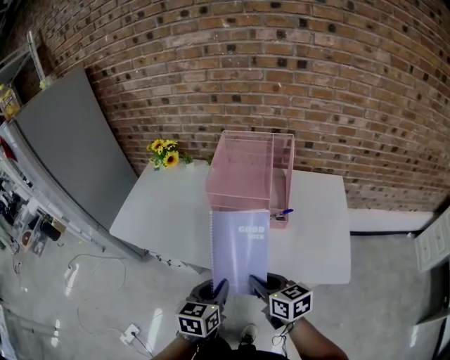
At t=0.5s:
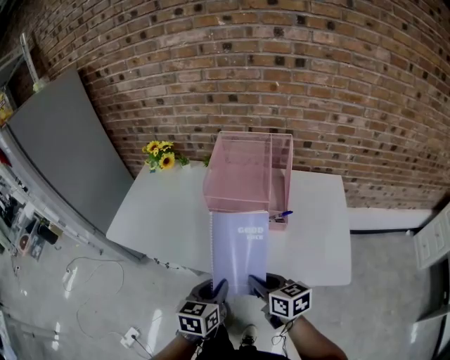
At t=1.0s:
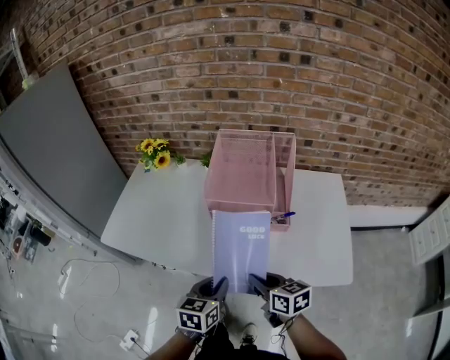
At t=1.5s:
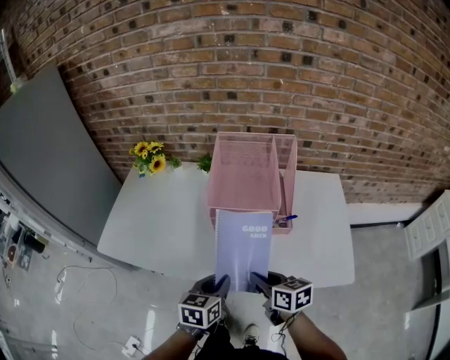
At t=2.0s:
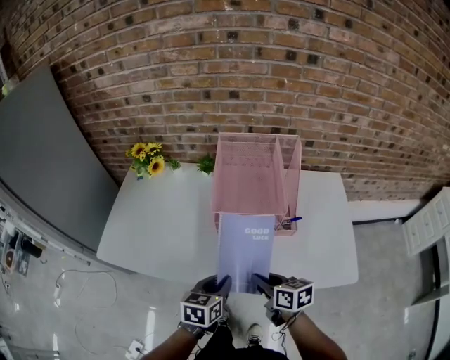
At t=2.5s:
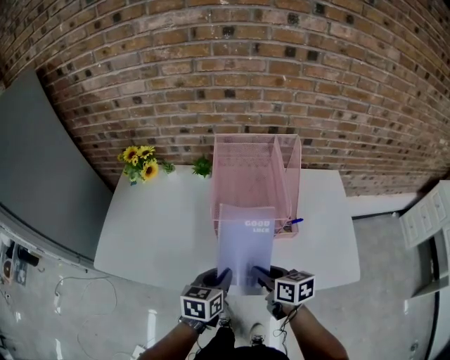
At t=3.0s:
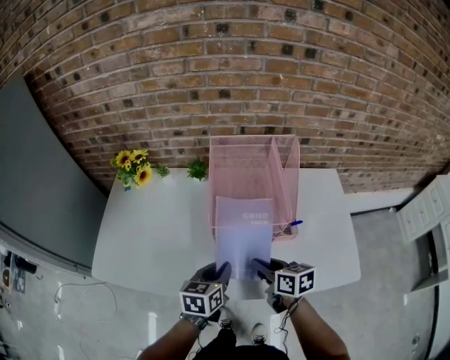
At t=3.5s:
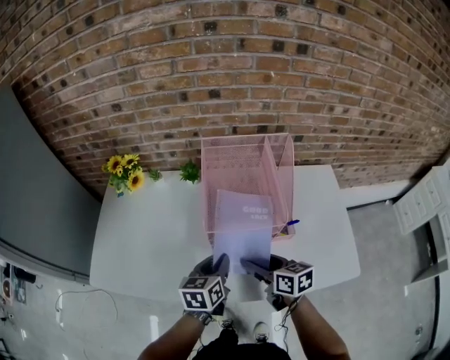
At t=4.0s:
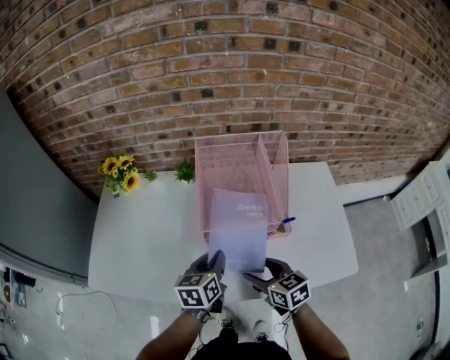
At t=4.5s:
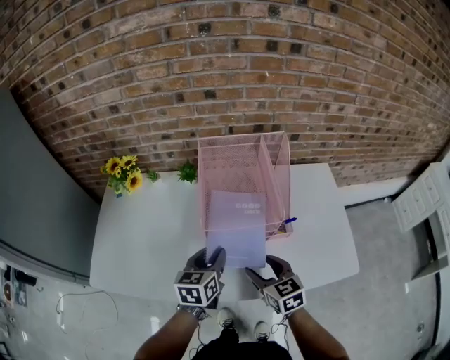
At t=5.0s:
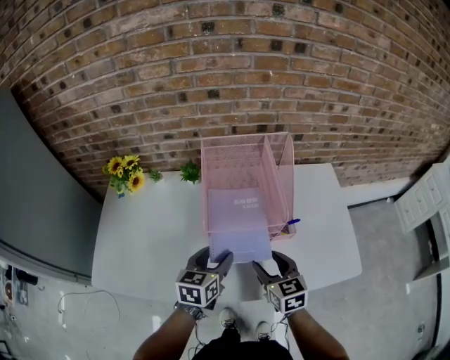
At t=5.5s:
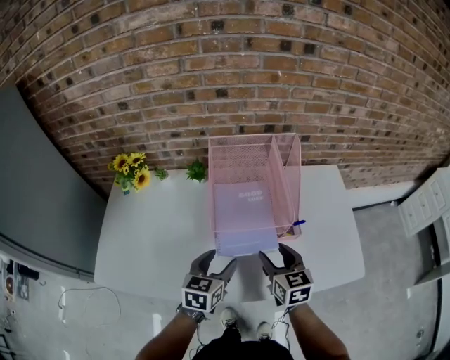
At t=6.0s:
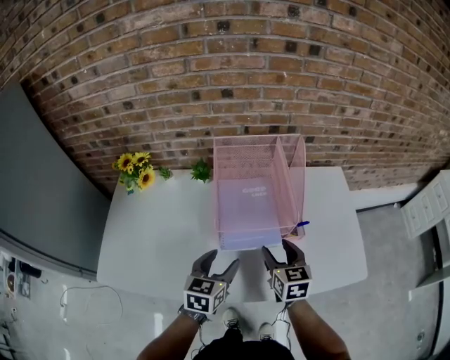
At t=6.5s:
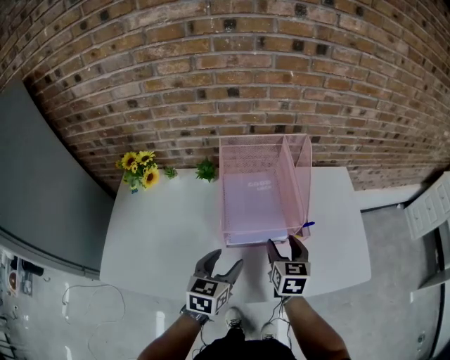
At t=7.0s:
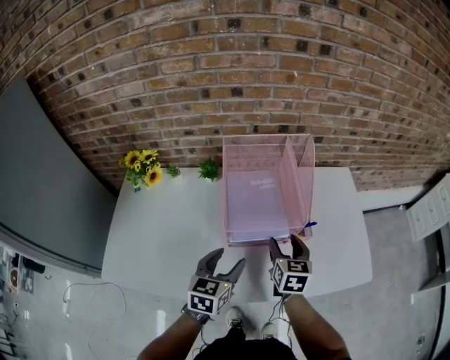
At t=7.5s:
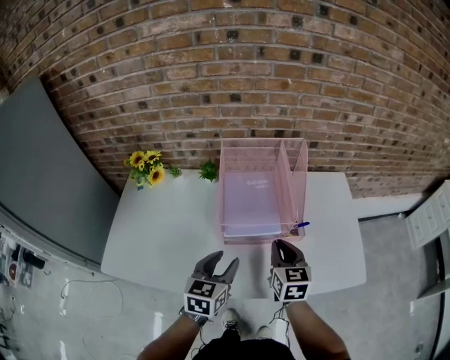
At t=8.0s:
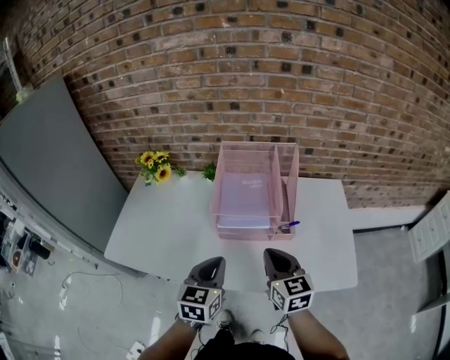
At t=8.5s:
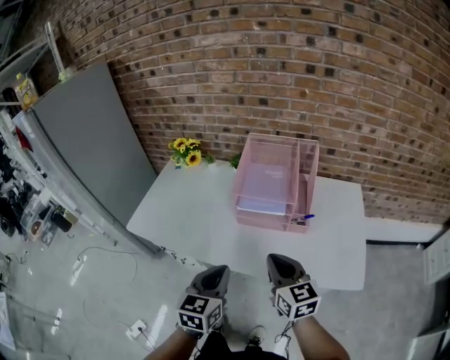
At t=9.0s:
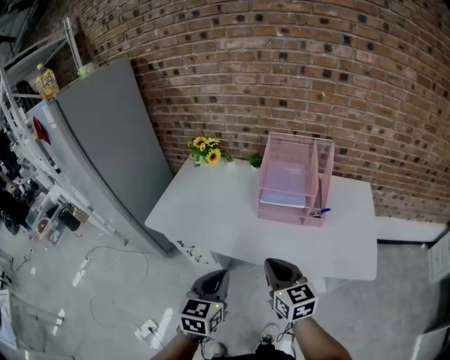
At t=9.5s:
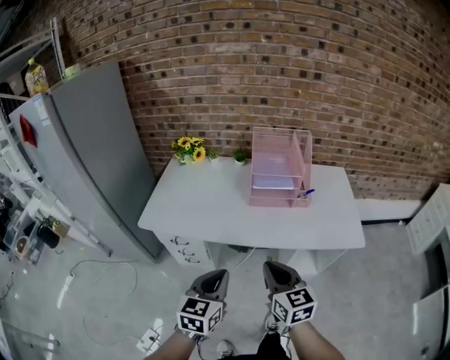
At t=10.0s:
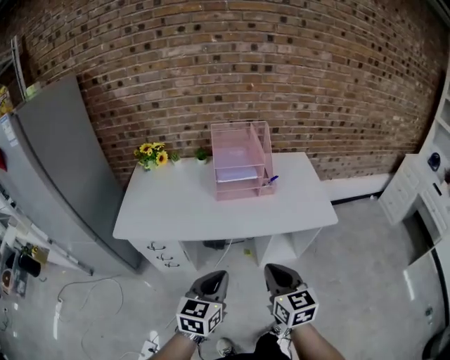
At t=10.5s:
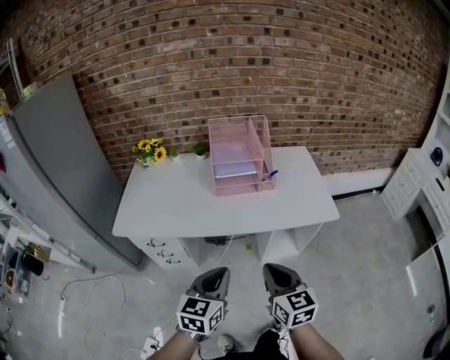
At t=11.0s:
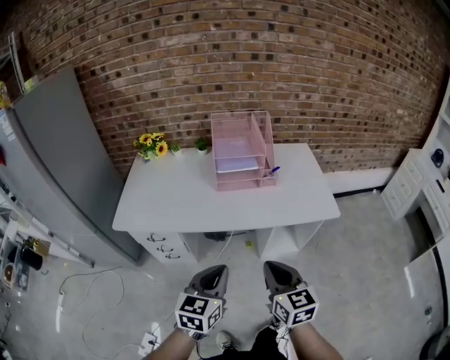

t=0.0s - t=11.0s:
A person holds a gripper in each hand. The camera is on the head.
t=0.0s - t=2.0s: Both grippers travel together forward and downward, some 10 cm.
t=2.0s - t=3.5s: The grippers both shift forward by approximately 10 cm. The right gripper opens its fingers.
t=3.5s - t=5.5s: The right gripper changes its angle by roughly 30 degrees. Meanwhile the left gripper opens up.
t=5.5s - t=7.5s: The right gripper closes its fingers. The left gripper moves roughly 5 cm.
t=7.5s - t=9.0s: The left gripper changes place by roughly 25 cm, and closes. Meanwhile the right gripper ends up approximately 25 cm from where it was, and changes its angle by about 30 degrees.
t=9.0s - t=11.0s: The right gripper changes place by some 20 cm, and turns by roughly 20 degrees. Meanwhile the left gripper shifts by roughly 10 cm, and changes its angle by about 20 degrees.

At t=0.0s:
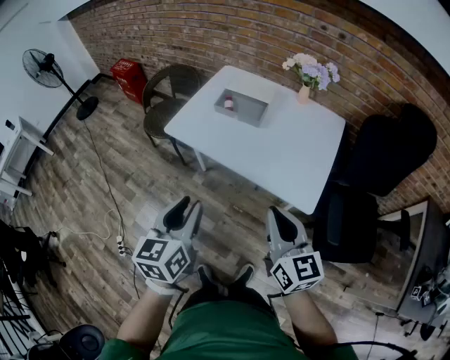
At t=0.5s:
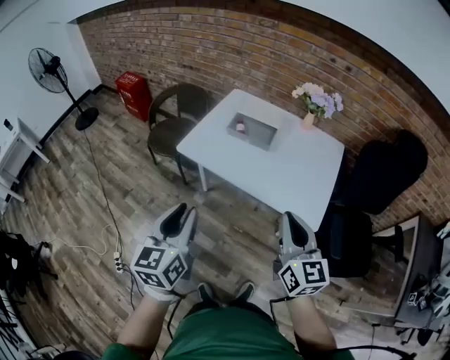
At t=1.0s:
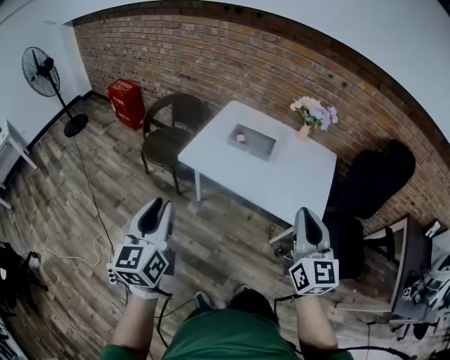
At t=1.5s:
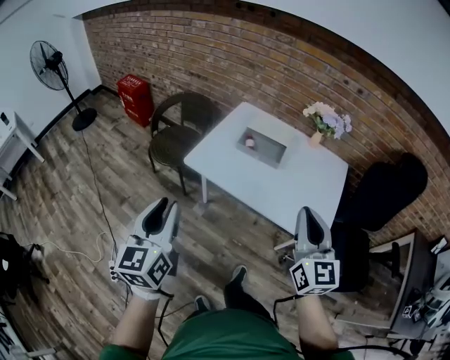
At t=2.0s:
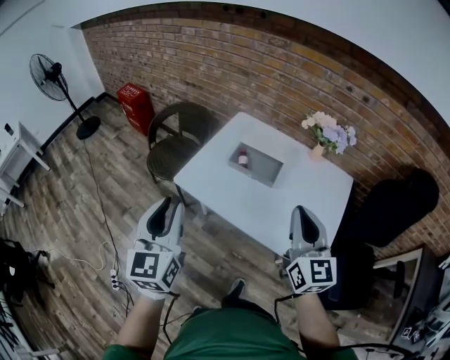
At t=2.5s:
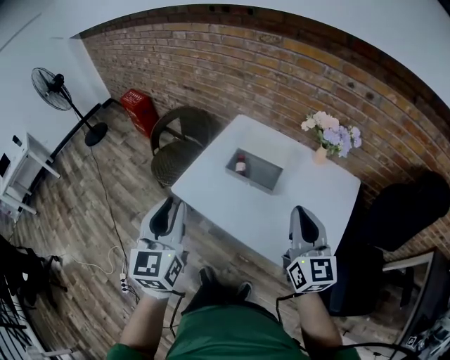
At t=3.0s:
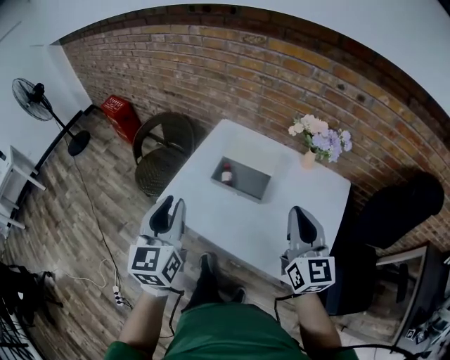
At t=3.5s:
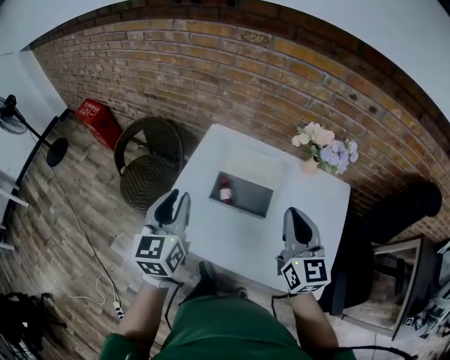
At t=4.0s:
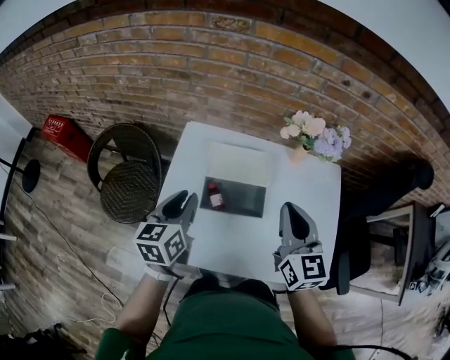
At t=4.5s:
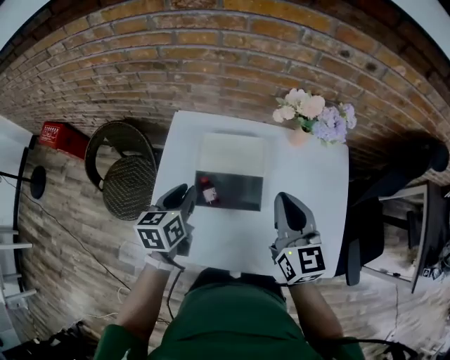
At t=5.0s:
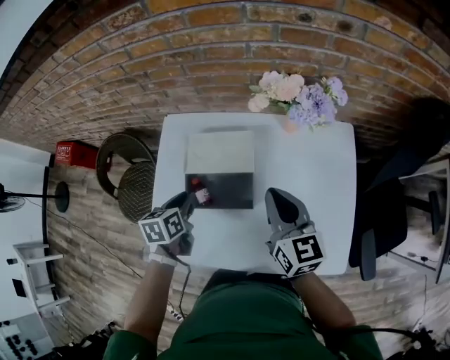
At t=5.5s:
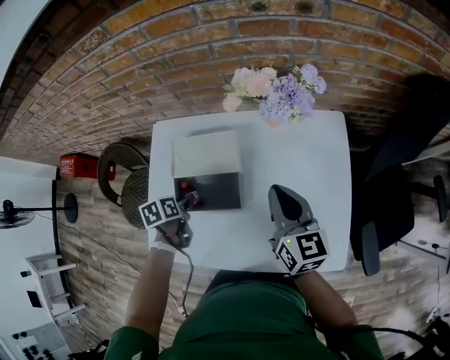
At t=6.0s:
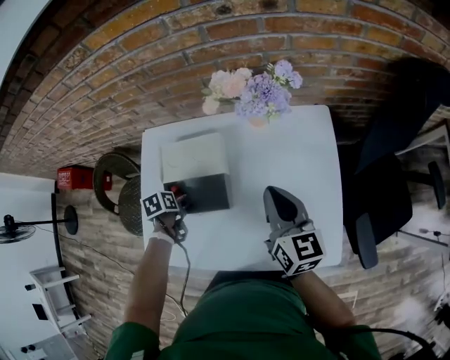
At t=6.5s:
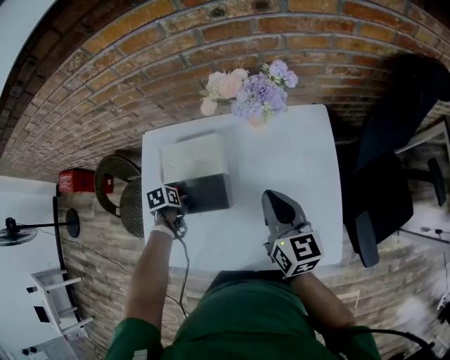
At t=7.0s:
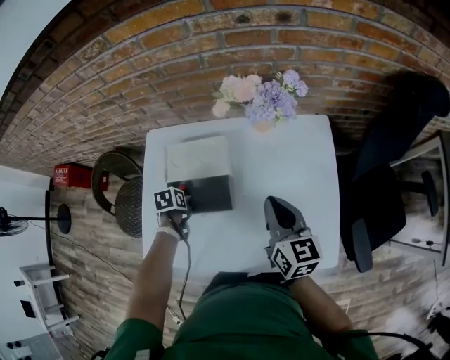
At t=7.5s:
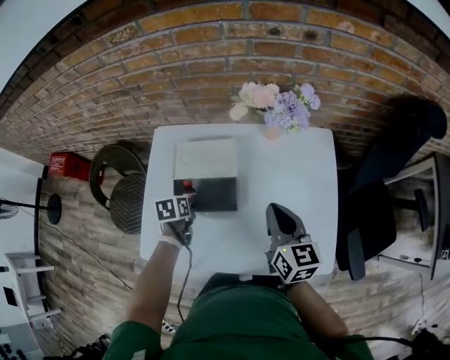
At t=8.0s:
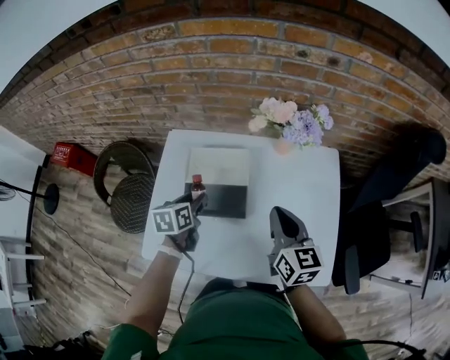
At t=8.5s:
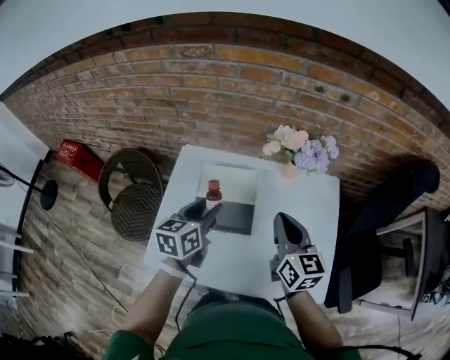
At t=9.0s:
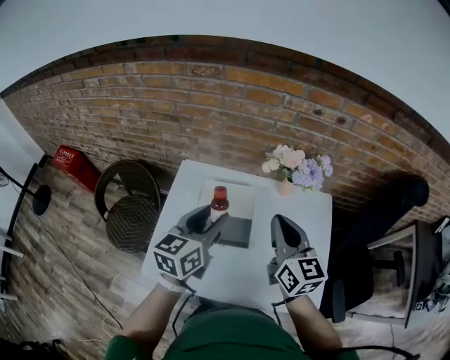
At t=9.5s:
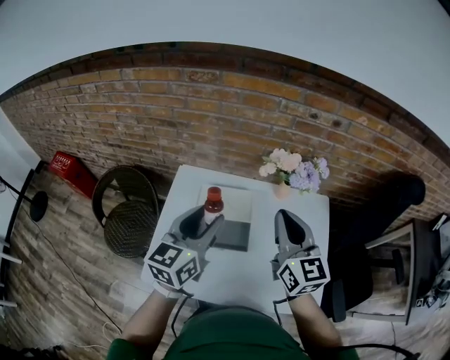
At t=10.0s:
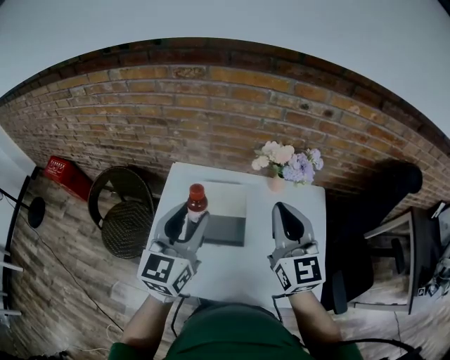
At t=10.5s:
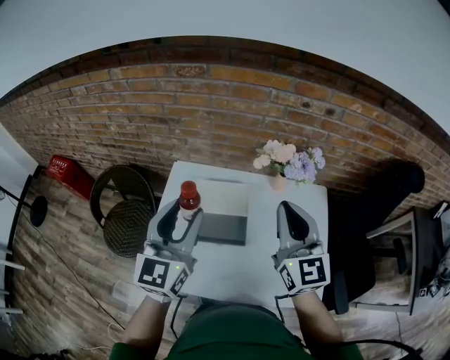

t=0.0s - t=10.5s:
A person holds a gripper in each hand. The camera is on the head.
t=0.0s - t=2.0s: The right gripper moves forward, roughly 20 cm, while the left gripper shifts about 20 cm forward, to the left and upward, and turns by about 20 degrees.
t=2.0s - t=4.0s: The left gripper shifts by about 40 cm, and changes its angle by approximately 40 degrees; the right gripper shifts by roughly 25 cm, and swivels approximately 20 degrees.
t=4.0s - t=6.5s: The left gripper is displaced downward by approximately 25 cm, tips its fingers downward by some 60 degrees, and opens its fingers; the right gripper moves roughly 20 cm, and swivels approximately 20 degrees.
t=6.5s - t=8.5s: The left gripper goes approximately 25 cm upward, and tips its fingers upward by some 50 degrees; the right gripper is displaced upward by some 10 cm.
t=8.5s - t=10.5s: Both grippers move upward, about 15 cm. The left gripper changes its angle by roughly 40 degrees. The right gripper rotates about 30 degrees.

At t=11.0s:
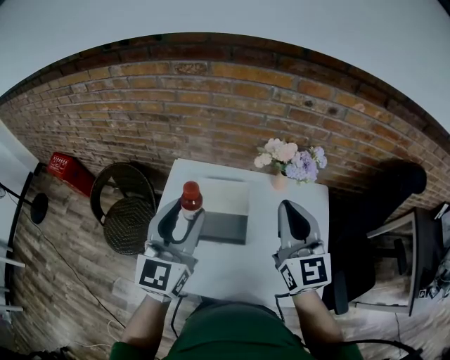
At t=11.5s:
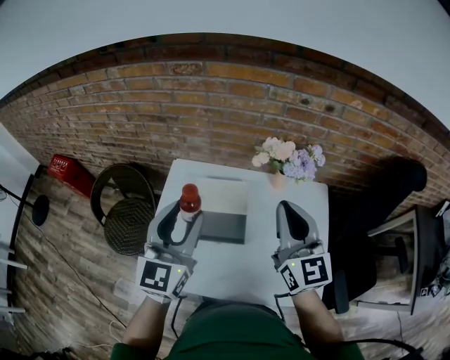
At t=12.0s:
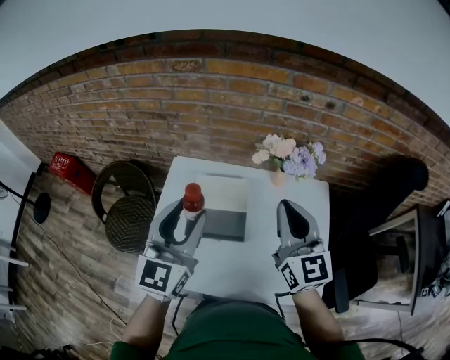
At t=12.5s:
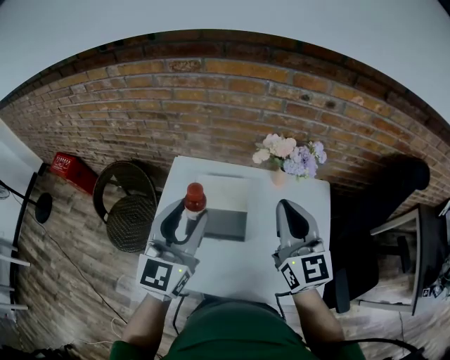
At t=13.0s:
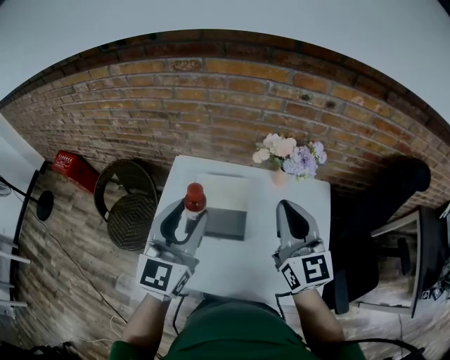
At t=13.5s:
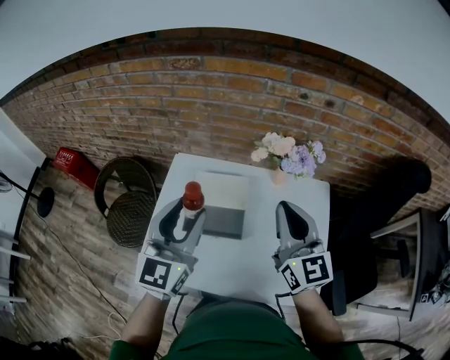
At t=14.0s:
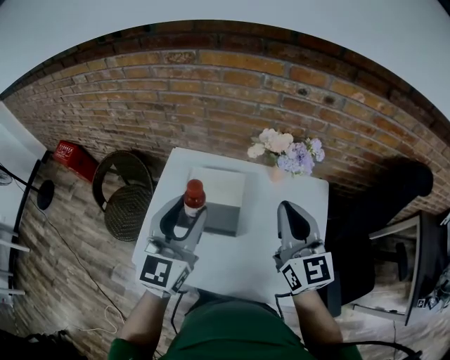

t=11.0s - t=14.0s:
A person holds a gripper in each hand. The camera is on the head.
t=11.0s - t=12.5s: The grippers stay close to where they were, moving slightly.
t=12.5s - t=14.0s: The grippers make only small movements.

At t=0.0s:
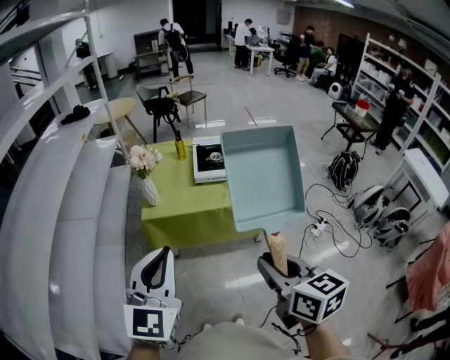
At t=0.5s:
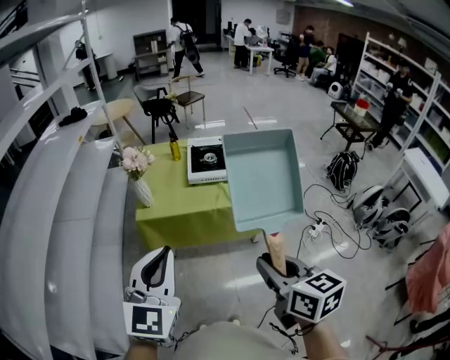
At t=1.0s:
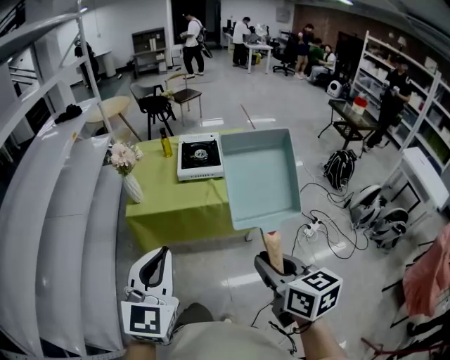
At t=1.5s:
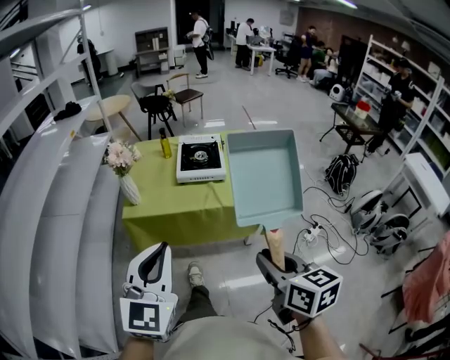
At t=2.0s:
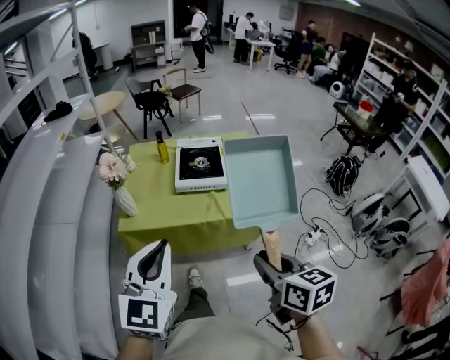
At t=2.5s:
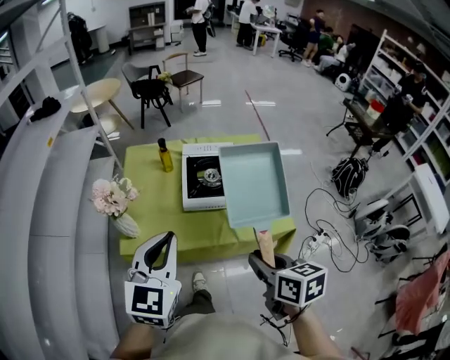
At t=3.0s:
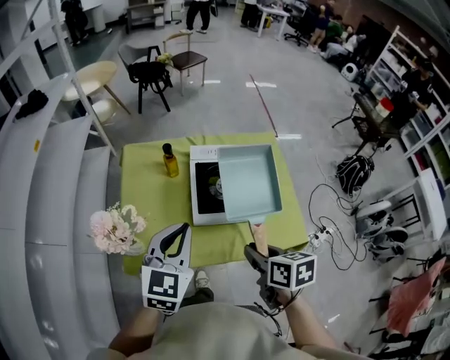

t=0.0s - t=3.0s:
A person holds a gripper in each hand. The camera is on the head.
t=0.0s - t=1.5s: The right gripper is displaced to the right and downward by about 10 cm. Meanwhile the left gripper heads to the right, covering approximately 10 cm.
t=1.5s - t=3.0s: Both grippers are carried forward, approximately 40 cm. The right gripper changes its angle by about 20 degrees.
